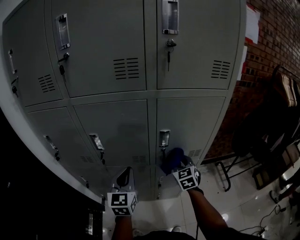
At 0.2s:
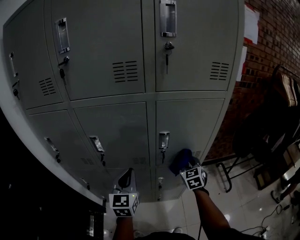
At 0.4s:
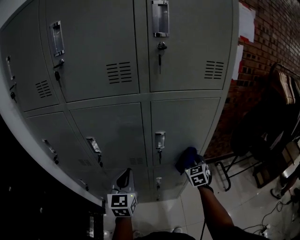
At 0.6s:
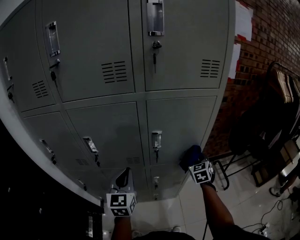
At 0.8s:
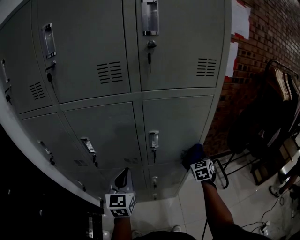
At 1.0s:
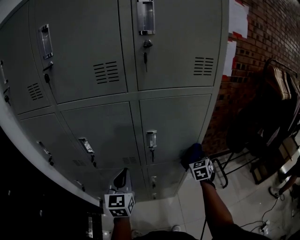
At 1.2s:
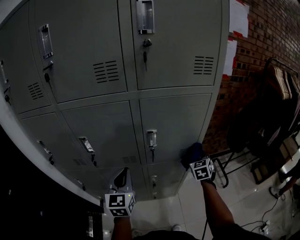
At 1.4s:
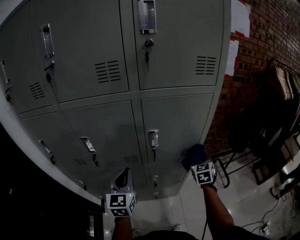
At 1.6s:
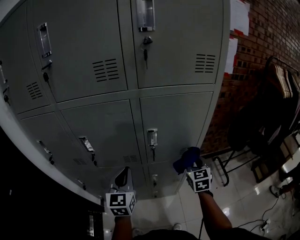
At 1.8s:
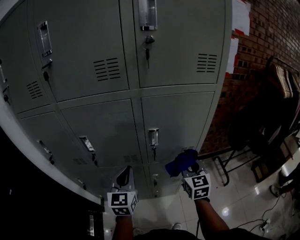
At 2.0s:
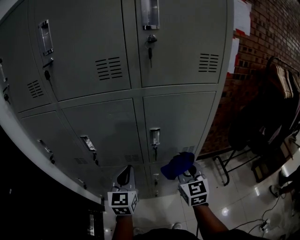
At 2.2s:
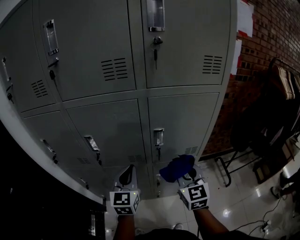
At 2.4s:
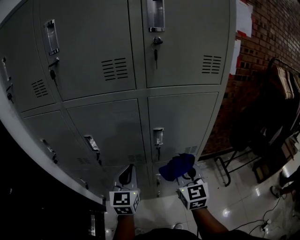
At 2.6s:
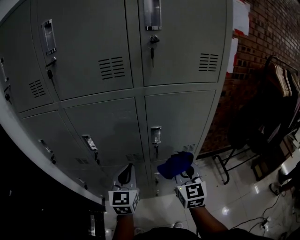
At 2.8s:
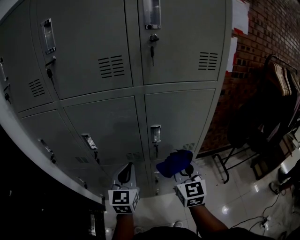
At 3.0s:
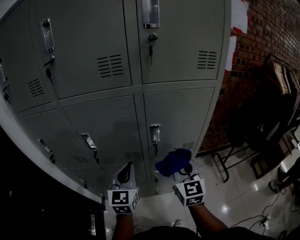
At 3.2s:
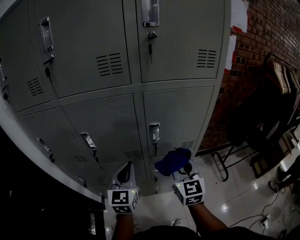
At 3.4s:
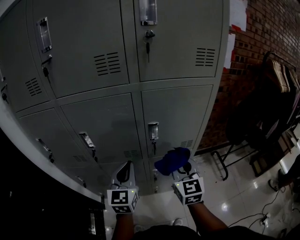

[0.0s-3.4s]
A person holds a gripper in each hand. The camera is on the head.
0.0s to 1.6s: The right gripper goes roughly 10 cm to the right.
1.6s to 3.4s: The right gripper goes approximately 15 cm to the left, upward and backward.

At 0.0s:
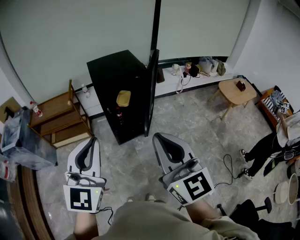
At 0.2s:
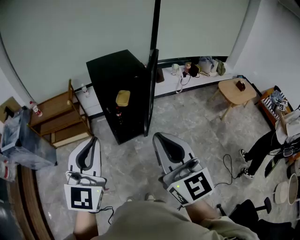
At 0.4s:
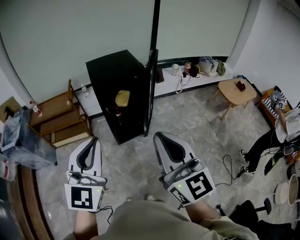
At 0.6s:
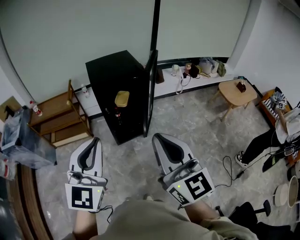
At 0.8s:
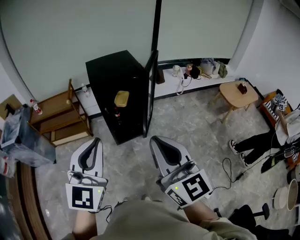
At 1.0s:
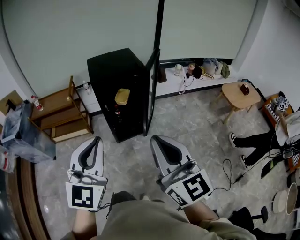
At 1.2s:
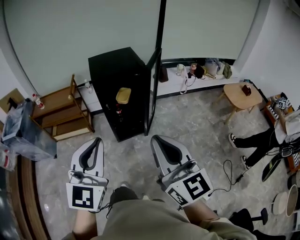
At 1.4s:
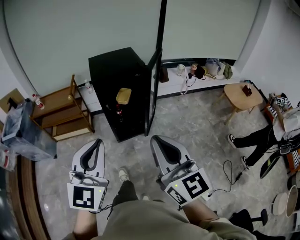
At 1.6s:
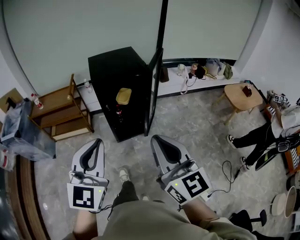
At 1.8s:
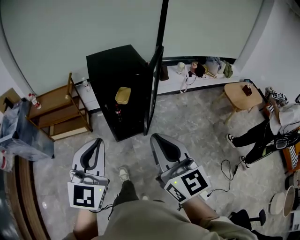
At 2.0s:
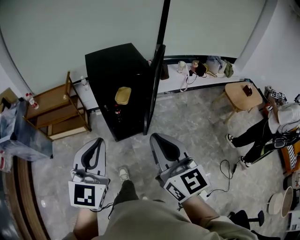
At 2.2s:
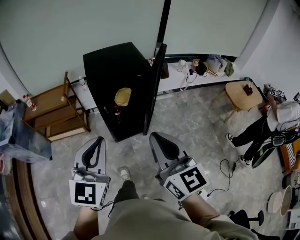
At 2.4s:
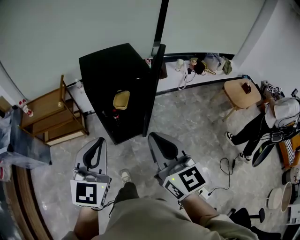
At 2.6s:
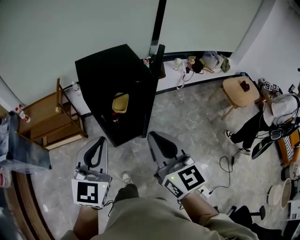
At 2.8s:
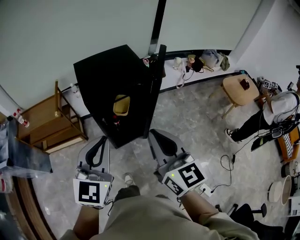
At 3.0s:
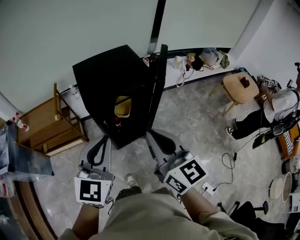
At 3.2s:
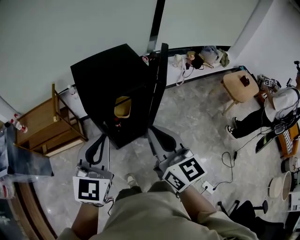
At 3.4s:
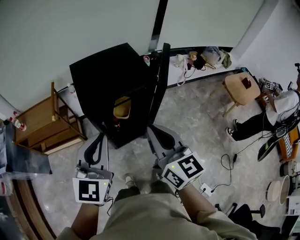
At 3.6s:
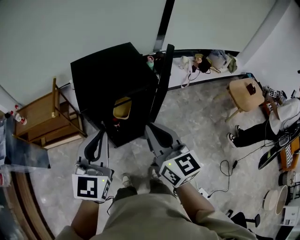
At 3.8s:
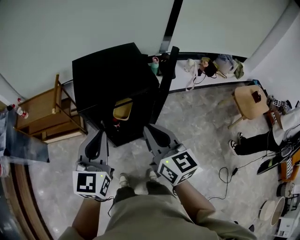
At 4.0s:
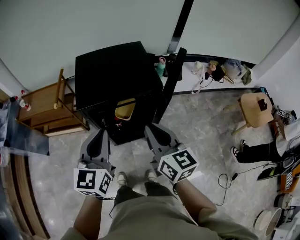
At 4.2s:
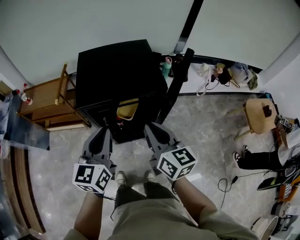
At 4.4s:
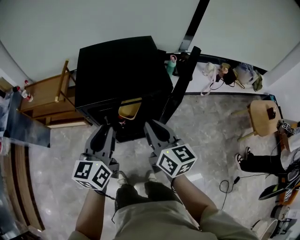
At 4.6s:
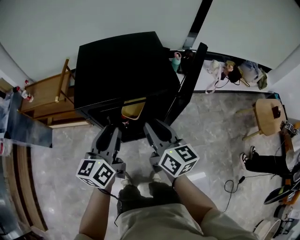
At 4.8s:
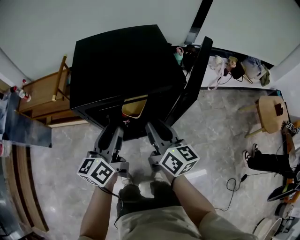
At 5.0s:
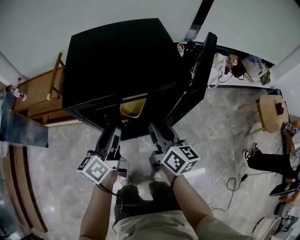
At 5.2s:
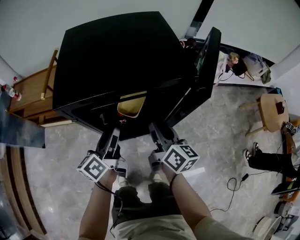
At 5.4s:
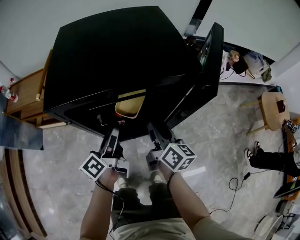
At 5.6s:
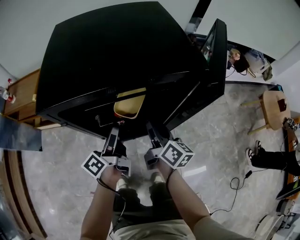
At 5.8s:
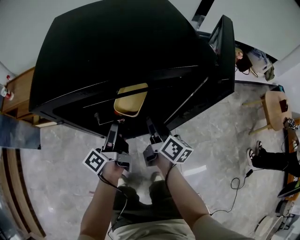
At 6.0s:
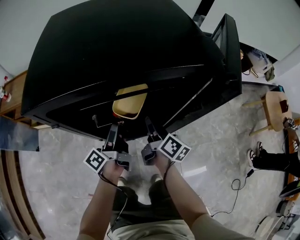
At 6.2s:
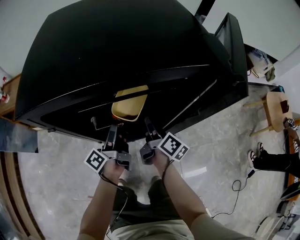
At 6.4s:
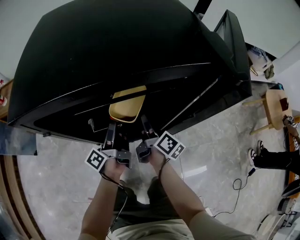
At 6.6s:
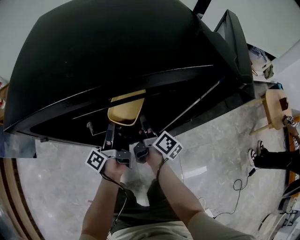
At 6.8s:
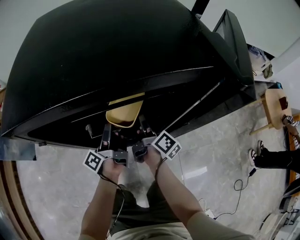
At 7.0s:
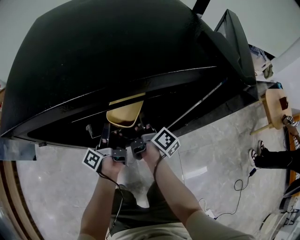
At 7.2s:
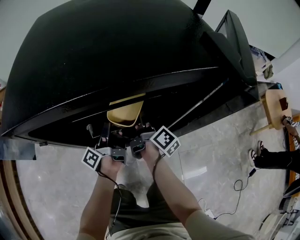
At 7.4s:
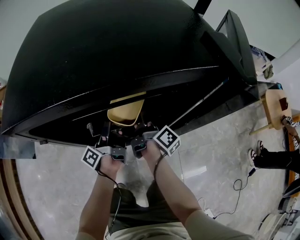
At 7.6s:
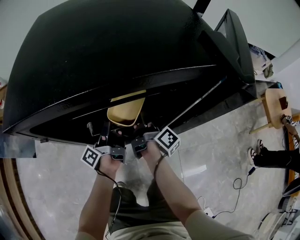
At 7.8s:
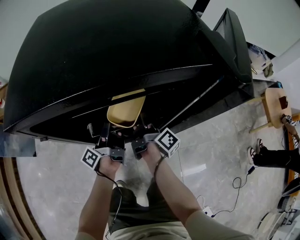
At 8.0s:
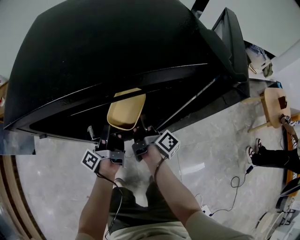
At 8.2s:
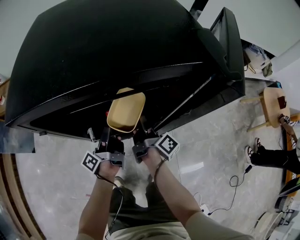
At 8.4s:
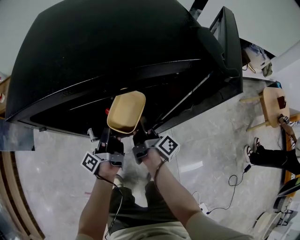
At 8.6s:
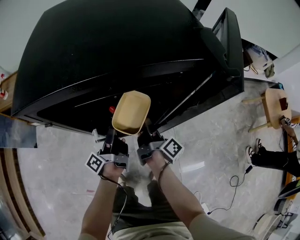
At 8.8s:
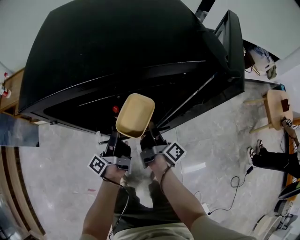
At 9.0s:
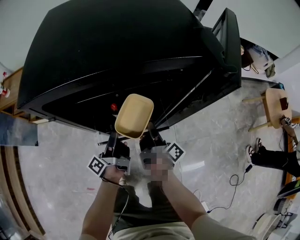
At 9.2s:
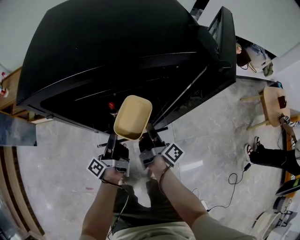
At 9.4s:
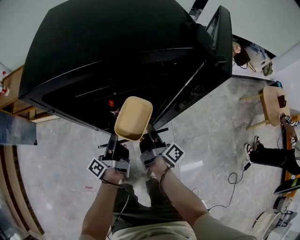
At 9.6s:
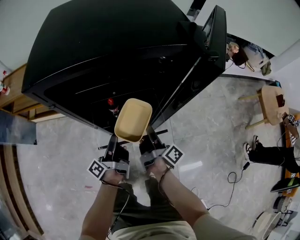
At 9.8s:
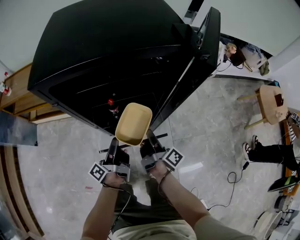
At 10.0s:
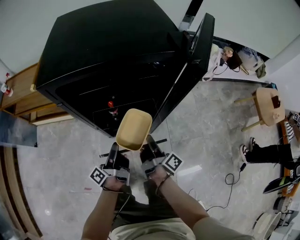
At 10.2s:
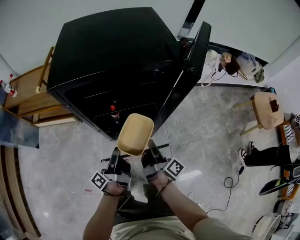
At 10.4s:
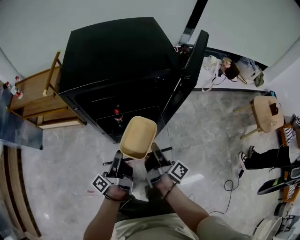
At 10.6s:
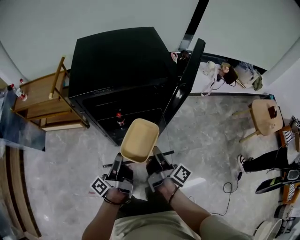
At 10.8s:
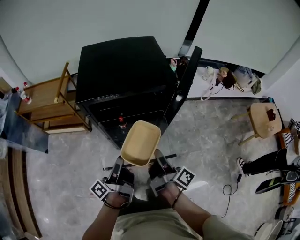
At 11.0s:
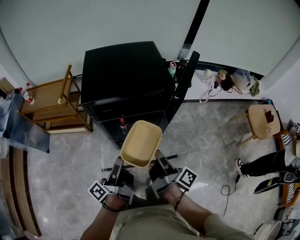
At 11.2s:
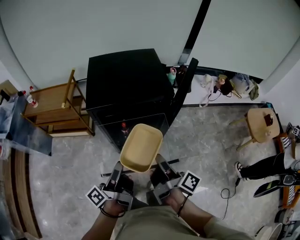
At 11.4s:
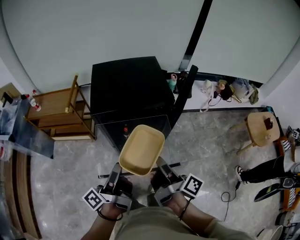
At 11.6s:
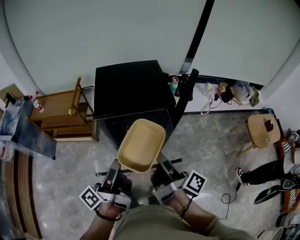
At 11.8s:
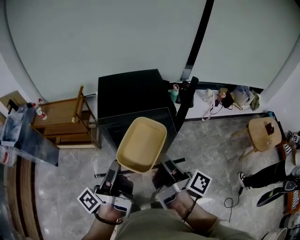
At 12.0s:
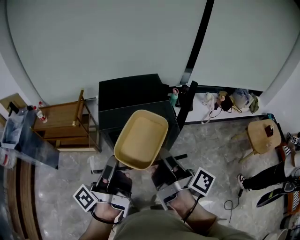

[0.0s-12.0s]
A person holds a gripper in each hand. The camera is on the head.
0.0s to 1.6s: The right gripper ends up approximately 5 cm from where it was; the left gripper moves to the right, roughly 5 cm.
1.6s to 3.0s: The two grippers go approximately 30 cm forward.
3.0s to 4.4s: The right gripper heads forward and downward, covering about 25 cm, and rotates about 20 degrees. The left gripper travels forward, downward and to the right by roughly 20 cm, and turns by approximately 40 degrees.
4.4s to 6.0s: The two grippers go approximately 35 cm downward. The left gripper twists about 60 degrees counterclockwise, seen from behind, and opens up. Meanwhile the right gripper swivels about 40 degrees, and opens up.
6.0s to 7.6s: The left gripper moves forward and downward, about 5 cm, and closes up; the right gripper moves forward, some 5 cm, rotates some 30 degrees, and closes its fingers.
7.6s to 9.0s: Both grippers move backward, about 10 cm.
9.0s to 10.4s: The grippers both shift backward and upward by some 20 cm.
10.4s to 12.0s: Both grippers travel together upward, about 40 cm.

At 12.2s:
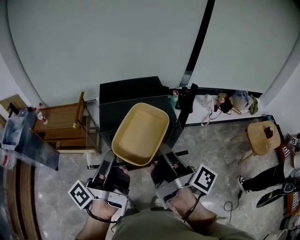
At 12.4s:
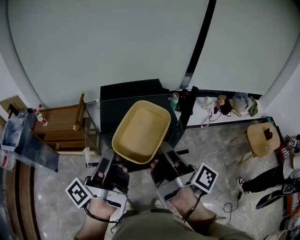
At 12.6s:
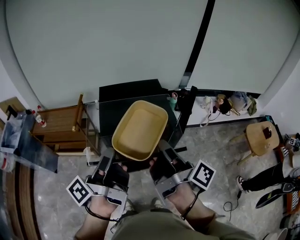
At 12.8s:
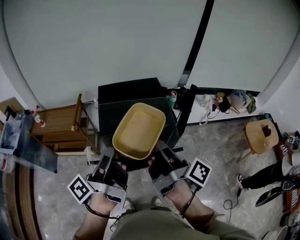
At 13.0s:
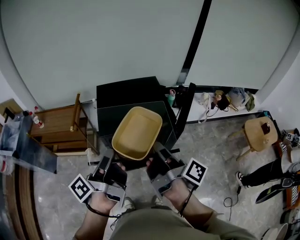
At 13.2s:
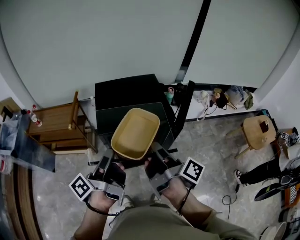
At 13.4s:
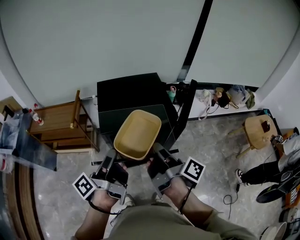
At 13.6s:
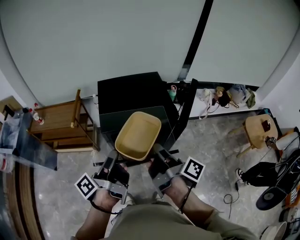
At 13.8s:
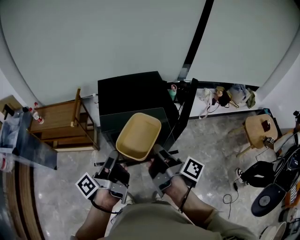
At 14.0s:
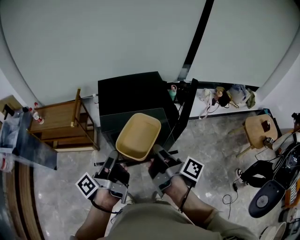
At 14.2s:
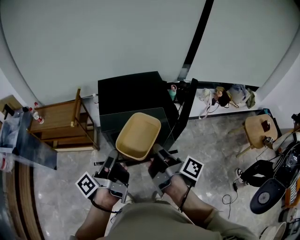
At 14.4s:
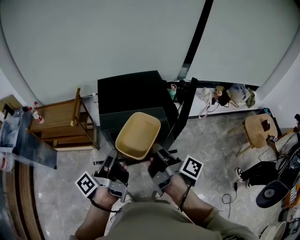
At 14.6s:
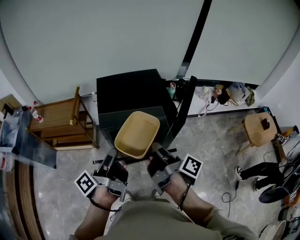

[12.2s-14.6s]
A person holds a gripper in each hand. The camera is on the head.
12.2s to 13.4s: Both grippers travel together downward, about 10 cm.
13.4s to 14.6s: The grippers move only a little.

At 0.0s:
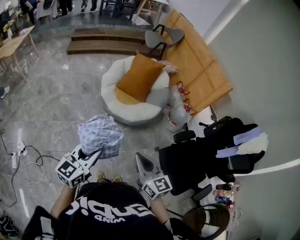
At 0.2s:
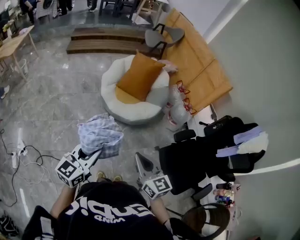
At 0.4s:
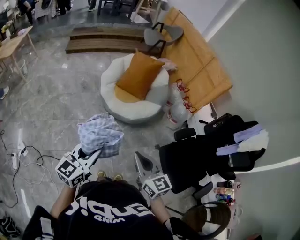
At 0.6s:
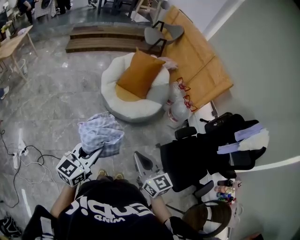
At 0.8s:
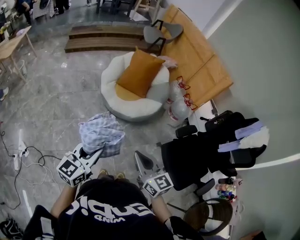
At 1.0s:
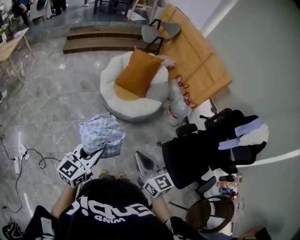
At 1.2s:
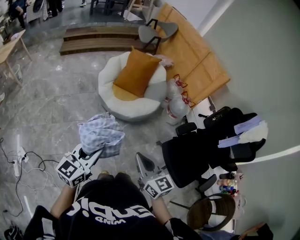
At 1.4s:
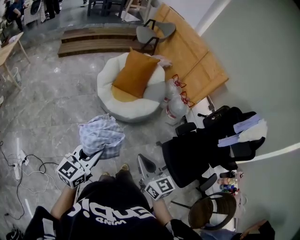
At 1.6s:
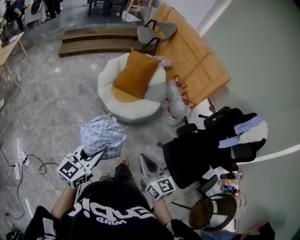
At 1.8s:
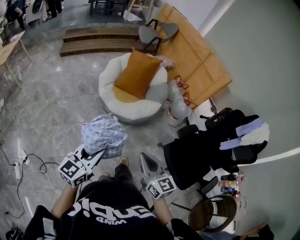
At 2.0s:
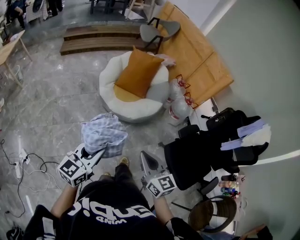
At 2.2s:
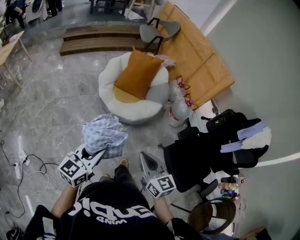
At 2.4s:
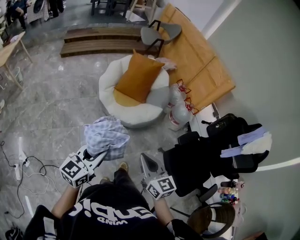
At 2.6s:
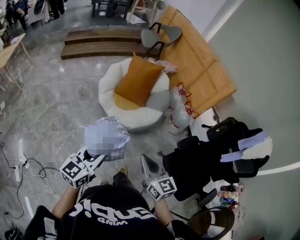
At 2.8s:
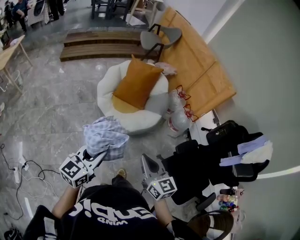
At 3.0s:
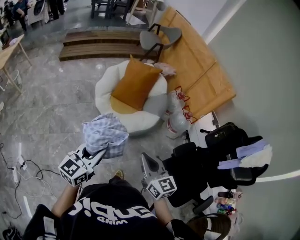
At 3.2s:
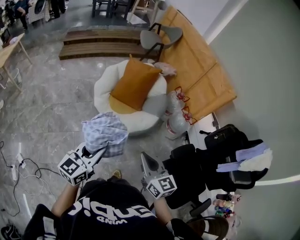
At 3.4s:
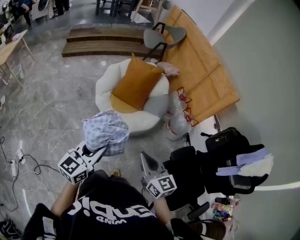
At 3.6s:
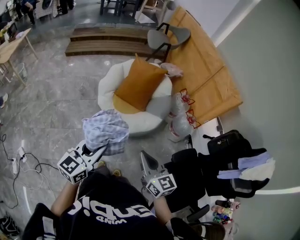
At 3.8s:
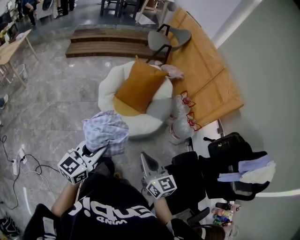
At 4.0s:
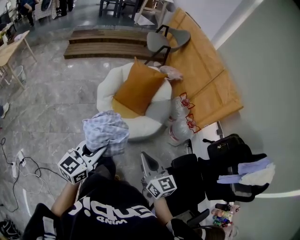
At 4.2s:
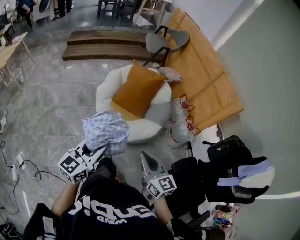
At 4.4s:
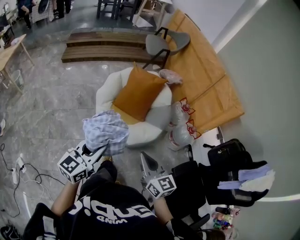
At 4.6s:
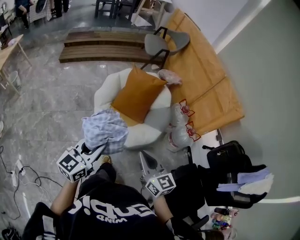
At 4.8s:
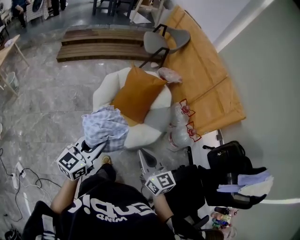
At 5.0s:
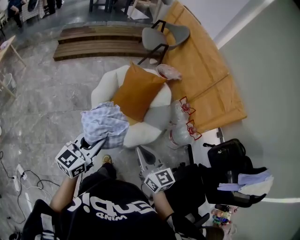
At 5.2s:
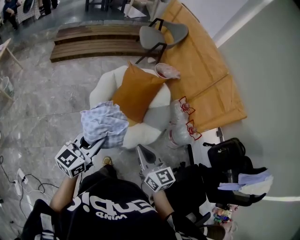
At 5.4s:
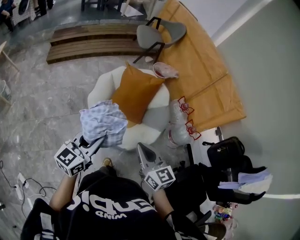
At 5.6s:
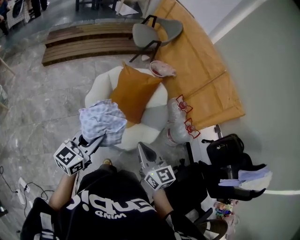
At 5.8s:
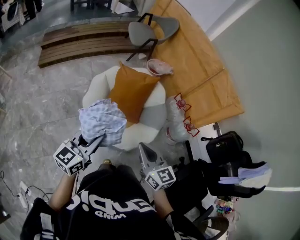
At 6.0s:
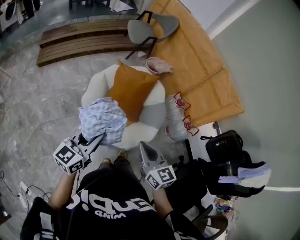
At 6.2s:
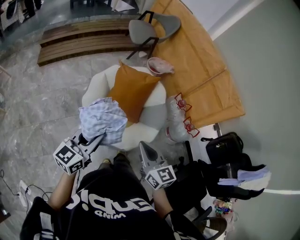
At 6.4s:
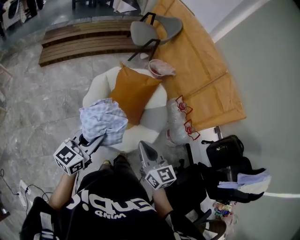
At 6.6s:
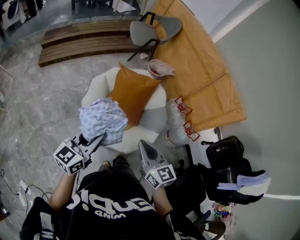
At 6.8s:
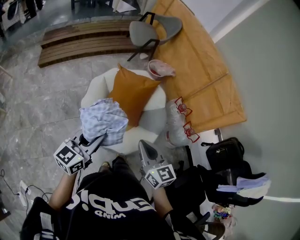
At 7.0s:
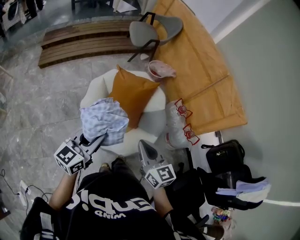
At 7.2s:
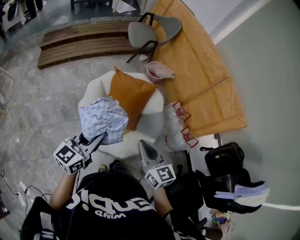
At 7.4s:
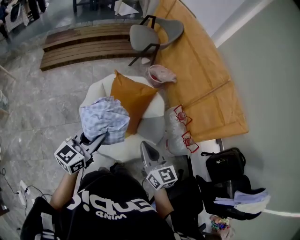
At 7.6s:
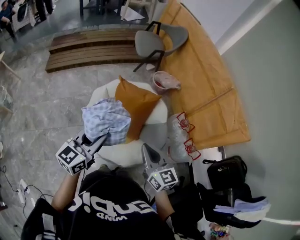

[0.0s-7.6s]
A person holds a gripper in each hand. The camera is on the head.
0.0s to 1.6s: The grippers make only small movements.
1.6s to 3.0s: Both grippers move forward, about 15 cm.
3.0s to 4.6s: The grippers both shift forward by some 20 cm.
4.6s to 6.0s: Both grippers travel together forward, some 20 cm.
6.0s to 7.6s: The grippers both shift forward by roughly 15 cm.
